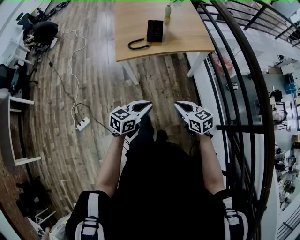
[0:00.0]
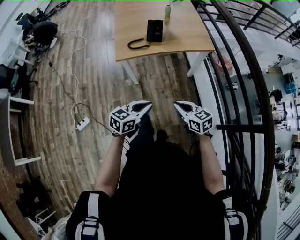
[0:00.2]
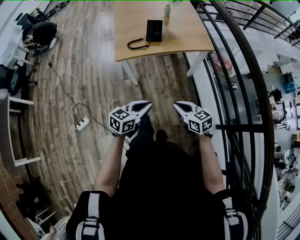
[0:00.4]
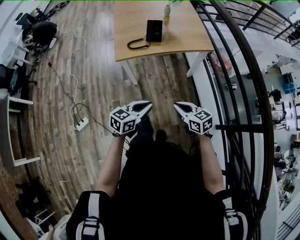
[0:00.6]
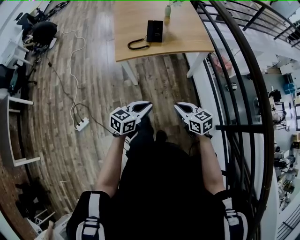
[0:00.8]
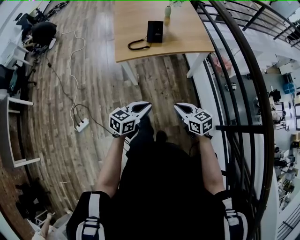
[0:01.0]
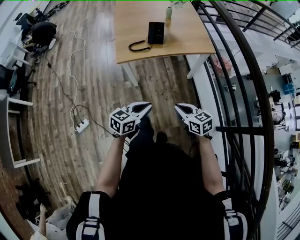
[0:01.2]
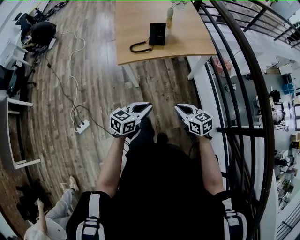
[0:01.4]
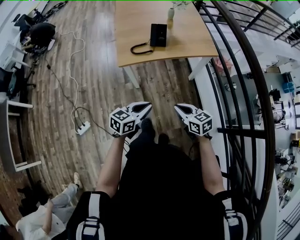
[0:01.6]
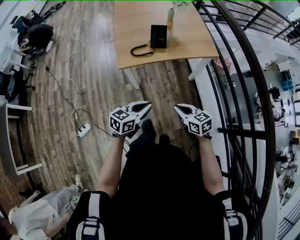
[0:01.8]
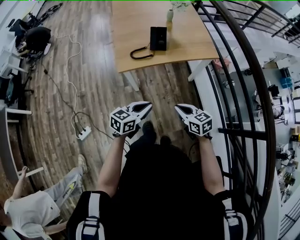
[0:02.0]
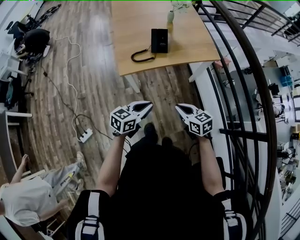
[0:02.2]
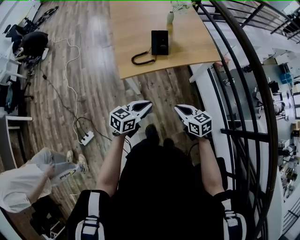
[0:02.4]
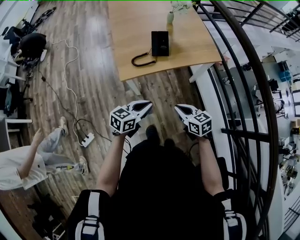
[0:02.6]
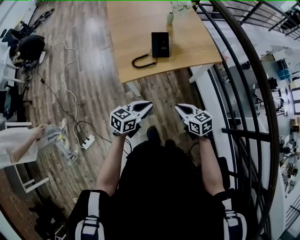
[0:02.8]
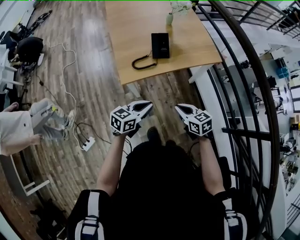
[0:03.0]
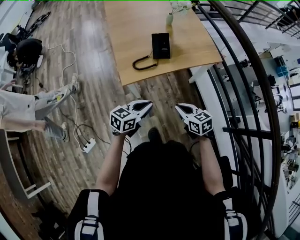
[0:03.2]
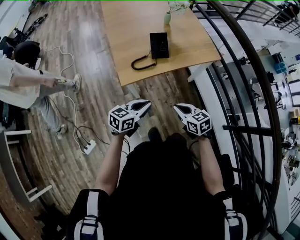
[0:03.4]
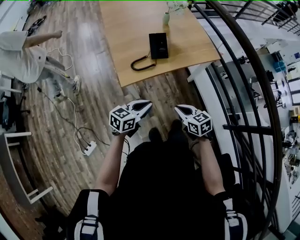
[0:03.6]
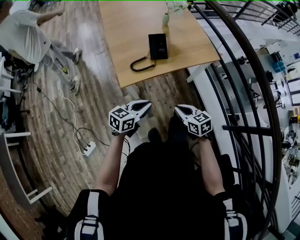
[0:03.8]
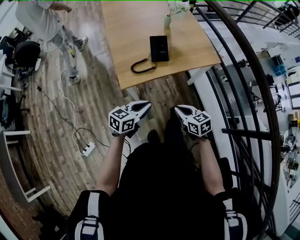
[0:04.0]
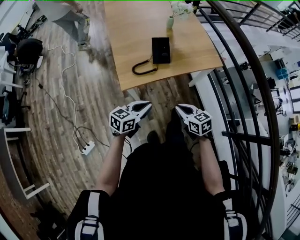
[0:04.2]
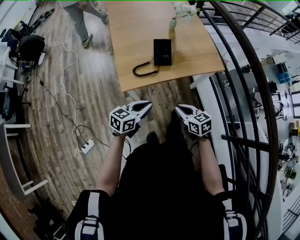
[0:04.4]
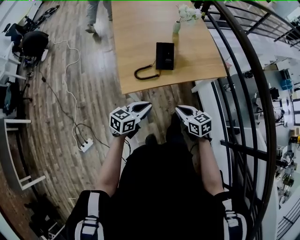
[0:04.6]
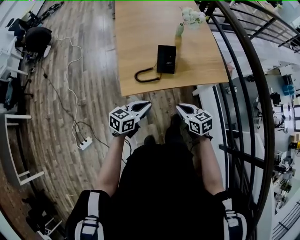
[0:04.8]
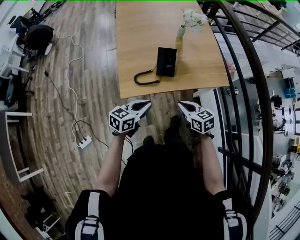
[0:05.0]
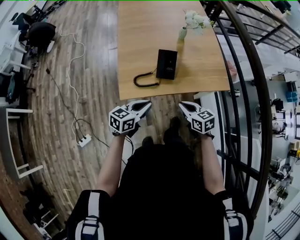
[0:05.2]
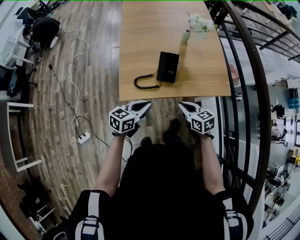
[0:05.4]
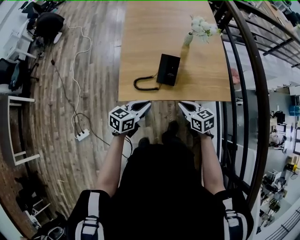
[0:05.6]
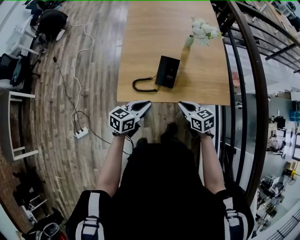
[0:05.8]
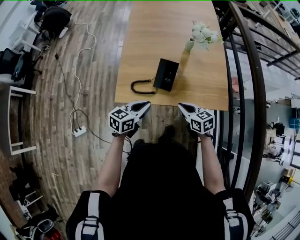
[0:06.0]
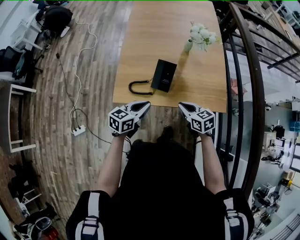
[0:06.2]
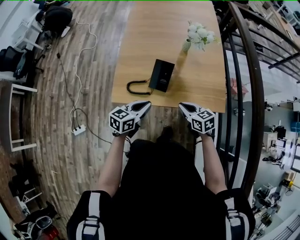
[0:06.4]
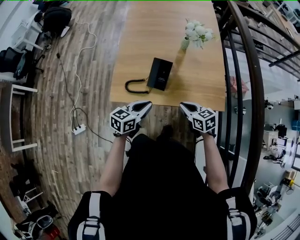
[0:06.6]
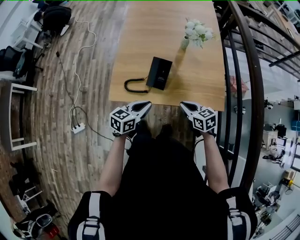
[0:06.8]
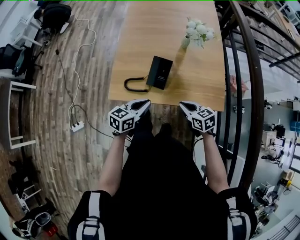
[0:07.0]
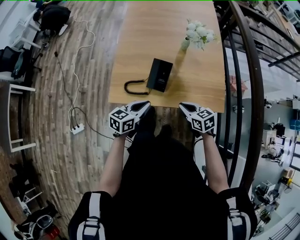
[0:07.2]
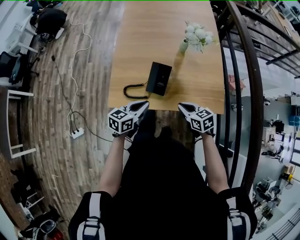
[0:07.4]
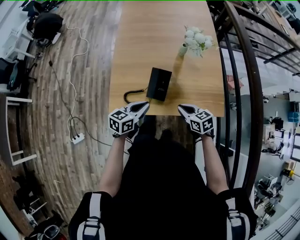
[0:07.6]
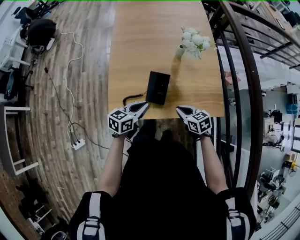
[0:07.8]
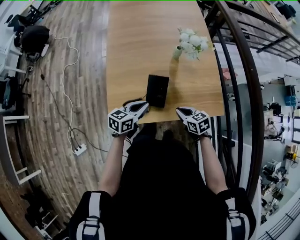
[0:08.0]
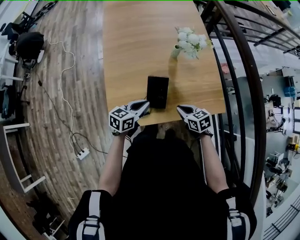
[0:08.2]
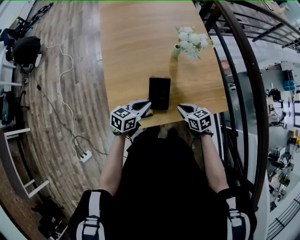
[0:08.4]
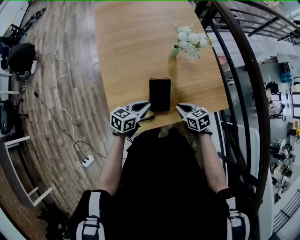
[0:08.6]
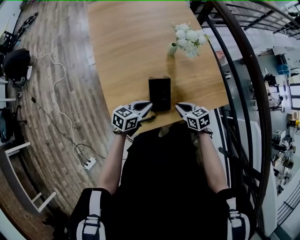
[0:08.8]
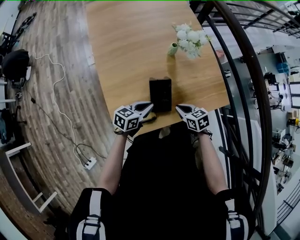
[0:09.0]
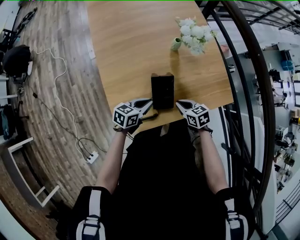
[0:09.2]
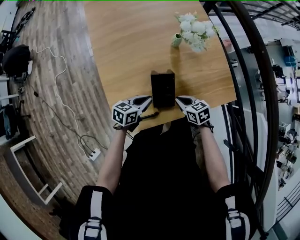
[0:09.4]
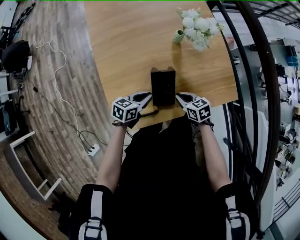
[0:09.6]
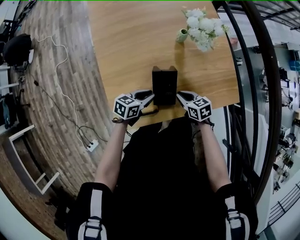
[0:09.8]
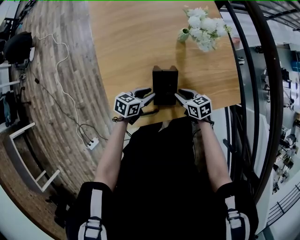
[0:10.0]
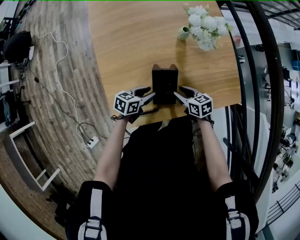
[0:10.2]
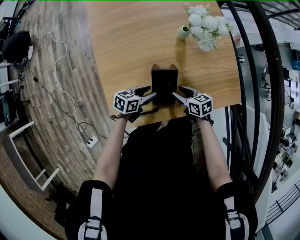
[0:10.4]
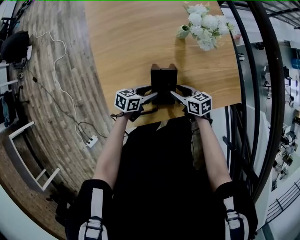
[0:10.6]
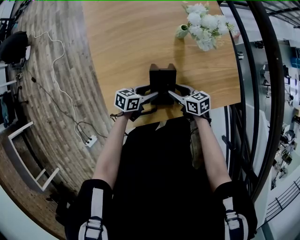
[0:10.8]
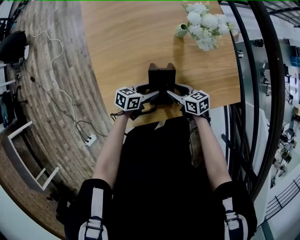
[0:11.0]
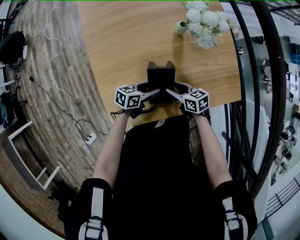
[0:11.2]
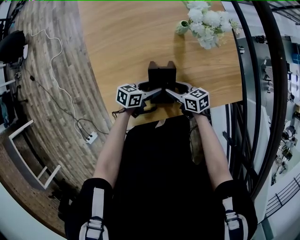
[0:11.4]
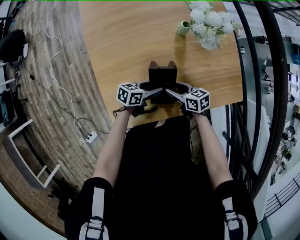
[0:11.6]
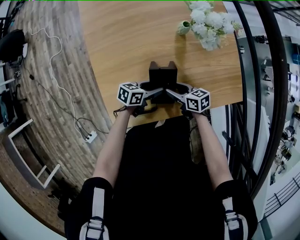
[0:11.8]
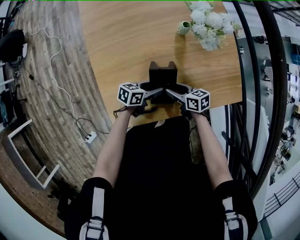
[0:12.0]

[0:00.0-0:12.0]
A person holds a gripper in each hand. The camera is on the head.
0:00.0 to 0:01.6: The right gripper changes place by some 5 cm, while the left gripper ends up roughly 5 cm from where it was.
0:01.6 to 0:03.0: The two grippers go approximately 15 cm forward and to the left.
0:03.0 to 0:04.4: Both grippers move forward, some 5 cm.
0:04.4 to 0:06.0: The two grippers go some 20 cm forward and to the right. The left gripper swivels some 20 degrees.
0:06.0 to 0:07.6: The two grippers go some 5 cm forward.
0:07.6 to 0:09.0: The right gripper moves downward and to the left, approximately 10 cm, while the left gripper is displaced forward and downward by roughly 10 cm, and swivels roughly 30 degrees.
0:09.0 to 0:10.4: The grippers both shift downward by about 10 cm. The left gripper opens up, while the right gripper opens its fingers.
0:10.4 to 0:12.0: The grippers stay close to where they were, moving slightly.

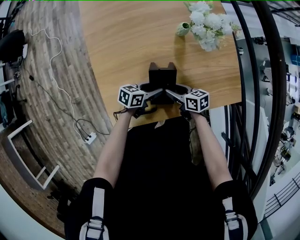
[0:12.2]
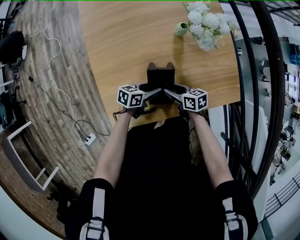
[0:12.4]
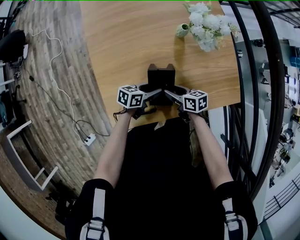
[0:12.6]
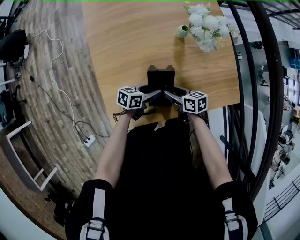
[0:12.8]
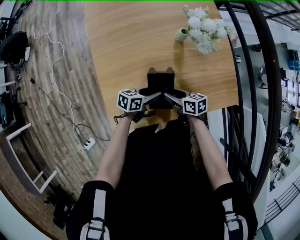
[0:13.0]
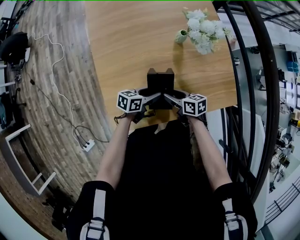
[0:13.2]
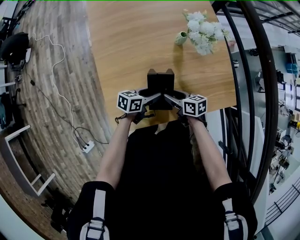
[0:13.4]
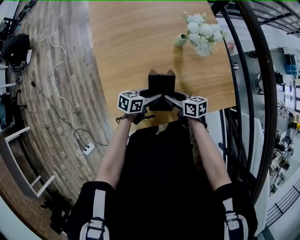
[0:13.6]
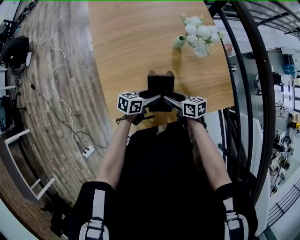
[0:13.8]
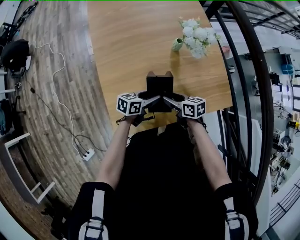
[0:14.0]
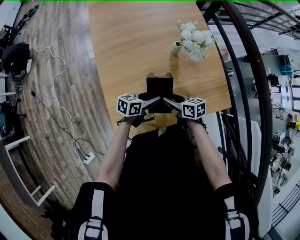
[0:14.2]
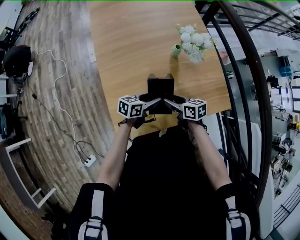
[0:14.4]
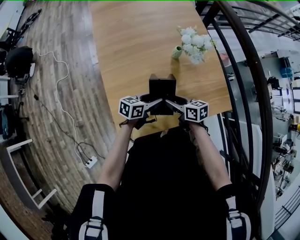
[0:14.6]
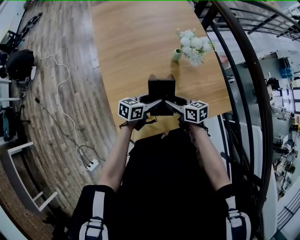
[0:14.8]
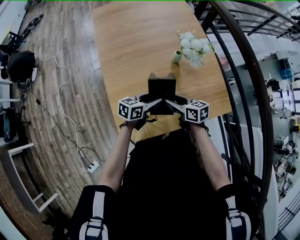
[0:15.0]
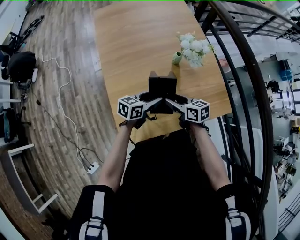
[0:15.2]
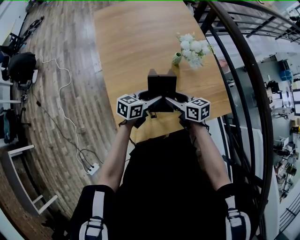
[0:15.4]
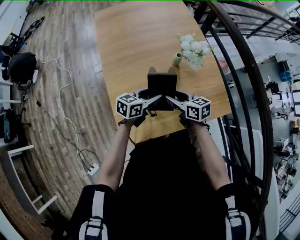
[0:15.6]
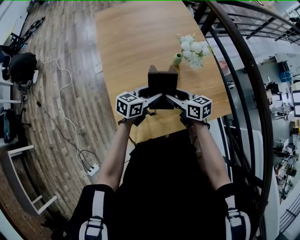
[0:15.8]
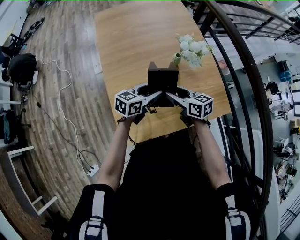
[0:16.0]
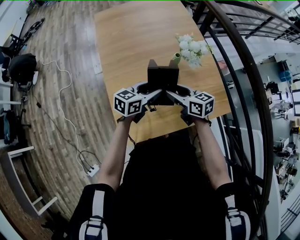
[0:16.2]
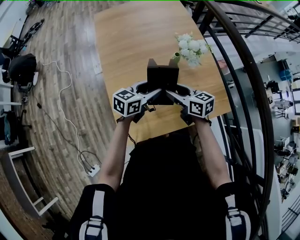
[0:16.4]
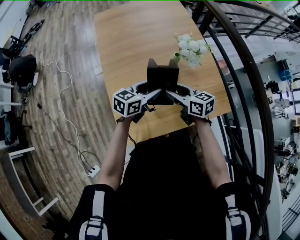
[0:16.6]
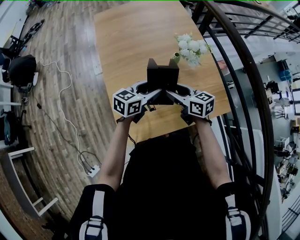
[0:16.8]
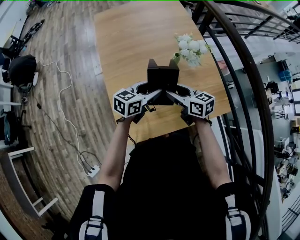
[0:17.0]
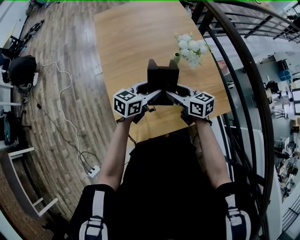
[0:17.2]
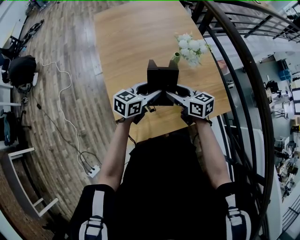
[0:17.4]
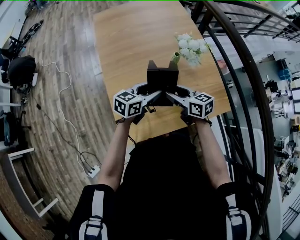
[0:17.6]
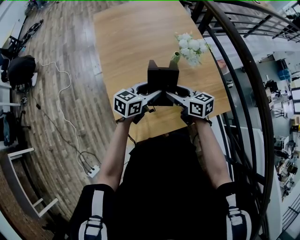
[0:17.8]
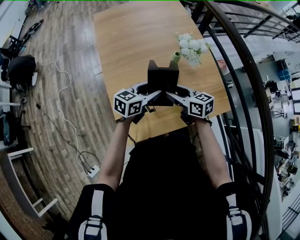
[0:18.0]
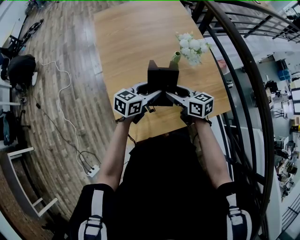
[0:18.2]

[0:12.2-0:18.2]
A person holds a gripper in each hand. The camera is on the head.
0:12.2 to 0:13.8: The grippers both shift upward by roughly 5 cm.
0:13.8 to 0:15.2: The two grippers go roughly 10 cm upward.
0:15.2 to 0:16.6: The grippers both shift upward by approximately 5 cm.
0:16.6 to 0:18.2: The grippers stay close to where they were, moving slightly.

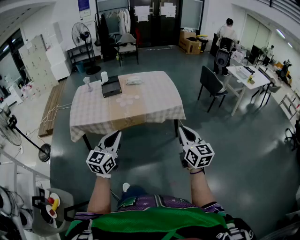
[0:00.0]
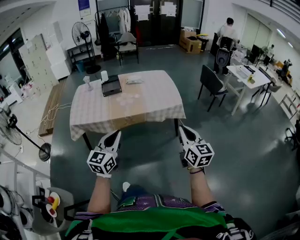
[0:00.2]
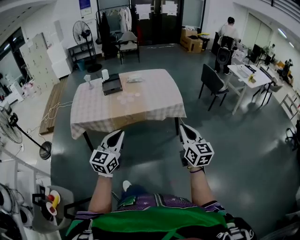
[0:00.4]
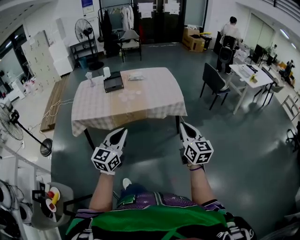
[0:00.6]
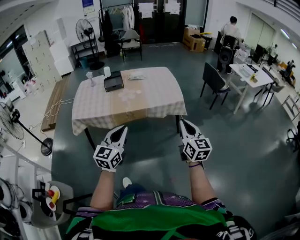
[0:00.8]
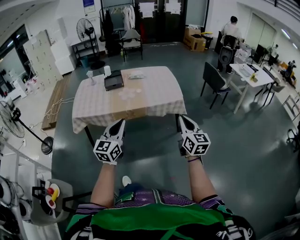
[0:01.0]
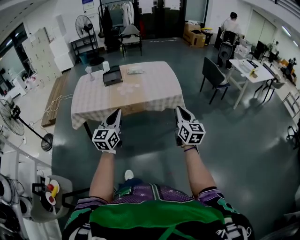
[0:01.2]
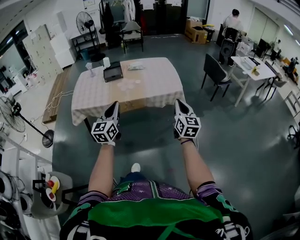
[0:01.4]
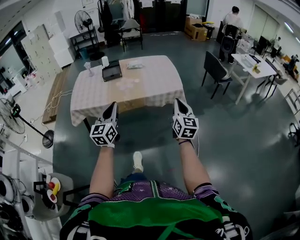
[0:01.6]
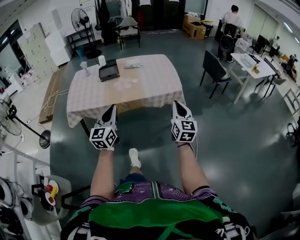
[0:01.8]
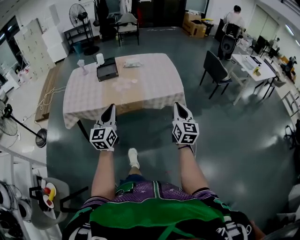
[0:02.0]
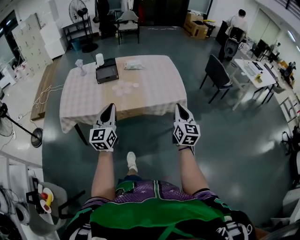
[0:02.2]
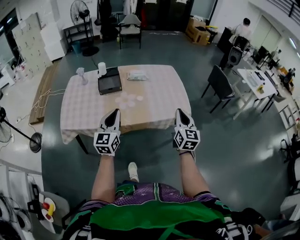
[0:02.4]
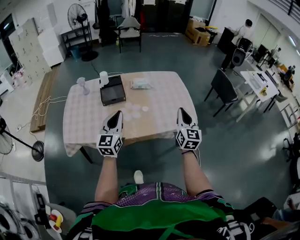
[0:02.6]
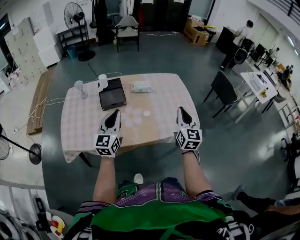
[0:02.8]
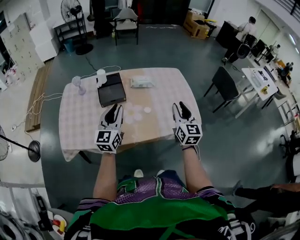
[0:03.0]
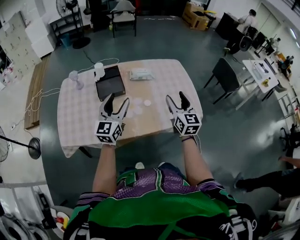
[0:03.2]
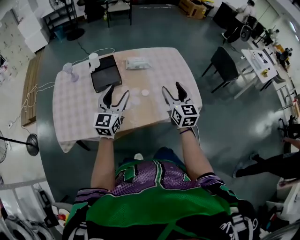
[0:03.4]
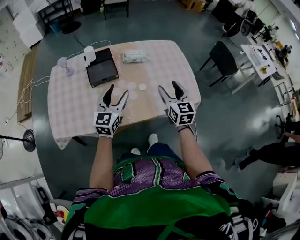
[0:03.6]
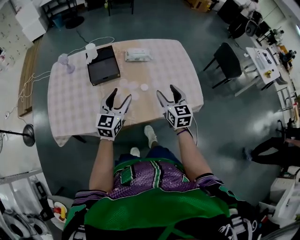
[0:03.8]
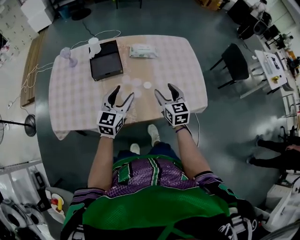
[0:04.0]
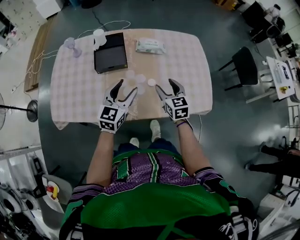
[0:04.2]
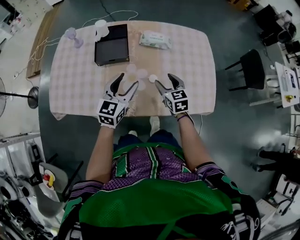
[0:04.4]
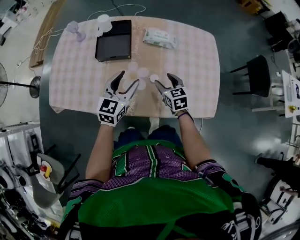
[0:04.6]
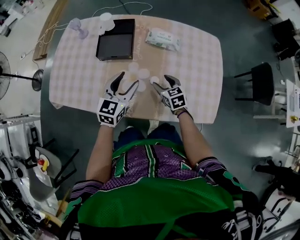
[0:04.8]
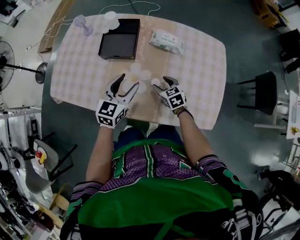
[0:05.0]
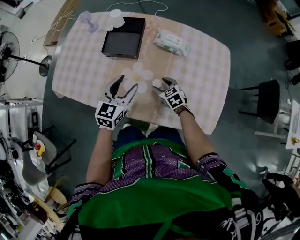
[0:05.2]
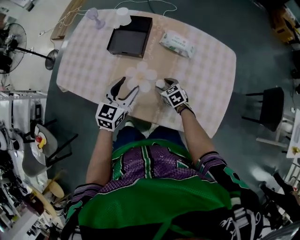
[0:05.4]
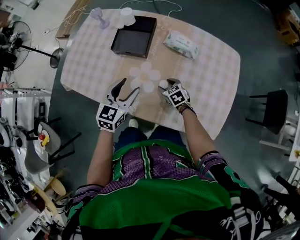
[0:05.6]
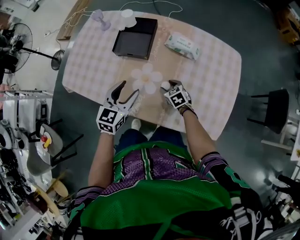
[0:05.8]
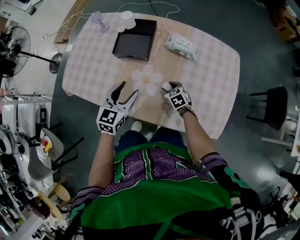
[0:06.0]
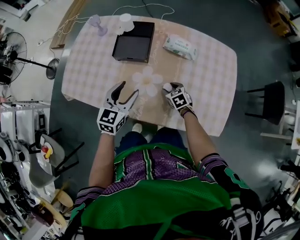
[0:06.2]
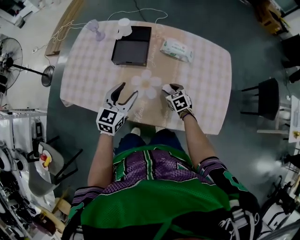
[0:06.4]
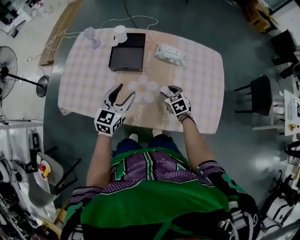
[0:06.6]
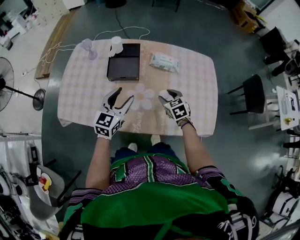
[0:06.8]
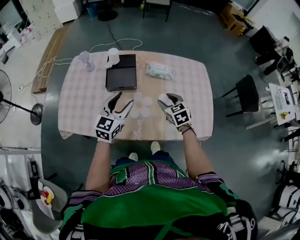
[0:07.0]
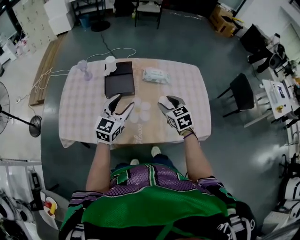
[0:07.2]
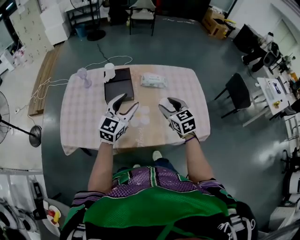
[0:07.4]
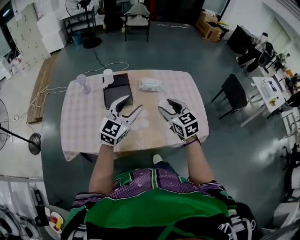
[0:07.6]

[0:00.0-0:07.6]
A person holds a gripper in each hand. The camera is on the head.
0:00.0 to 0:01.6: The grippers both shift forward by about 5 cm.
0:01.6 to 0:03.0: The two grippers travel together, forward and to the left, about 50 cm.
0:03.0 to 0:04.6: The left gripper shifts about 20 cm downward, forward and to the right, rotates about 20 degrees, and opens up. The right gripper goes about 30 cm downward and forward, angles its fingers downward, by approximately 30 degrees, and opens its fingers.
0:04.6 to 0:06.0: The right gripper moves downward, about 10 cm, and turns by some 30 degrees.
0:06.0 to 0:07.6: The left gripper moves upward, some 20 cm, and changes its angle by approximately 40 degrees. Meanwhile the right gripper heads upward, covering roughly 35 cm, and rotates about 40 degrees.
